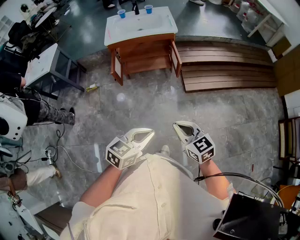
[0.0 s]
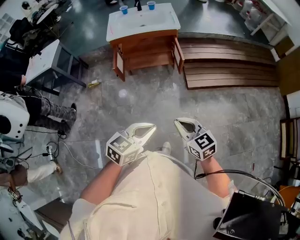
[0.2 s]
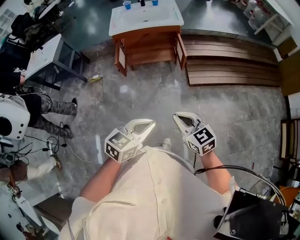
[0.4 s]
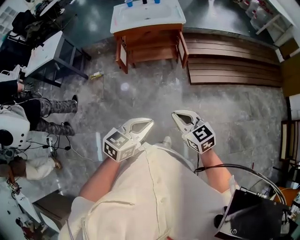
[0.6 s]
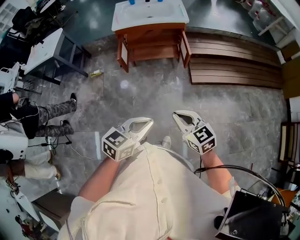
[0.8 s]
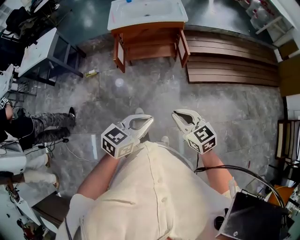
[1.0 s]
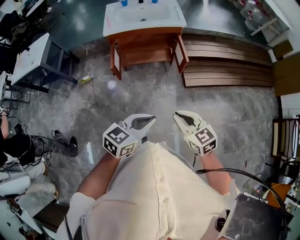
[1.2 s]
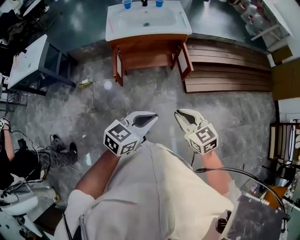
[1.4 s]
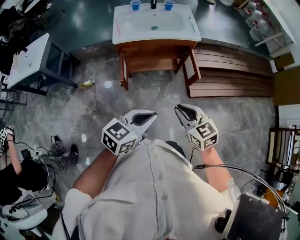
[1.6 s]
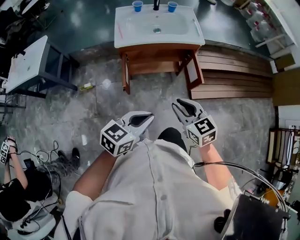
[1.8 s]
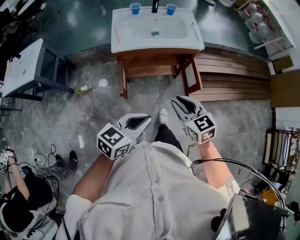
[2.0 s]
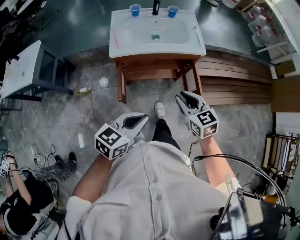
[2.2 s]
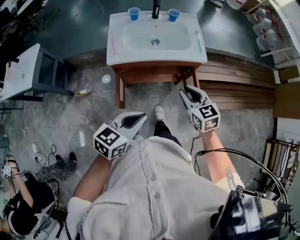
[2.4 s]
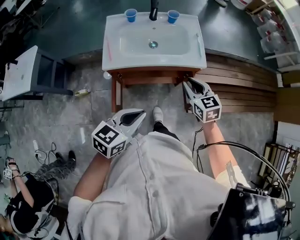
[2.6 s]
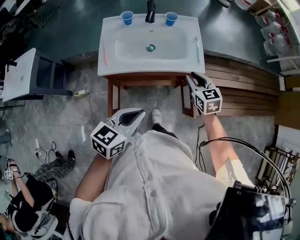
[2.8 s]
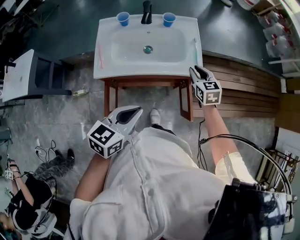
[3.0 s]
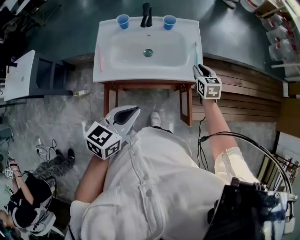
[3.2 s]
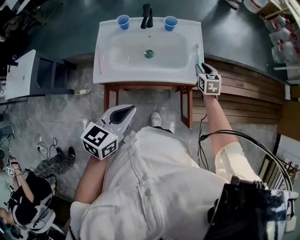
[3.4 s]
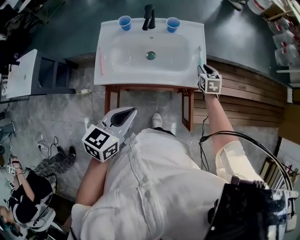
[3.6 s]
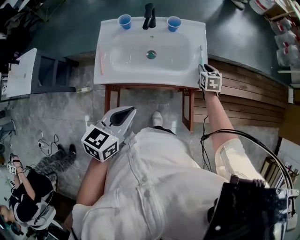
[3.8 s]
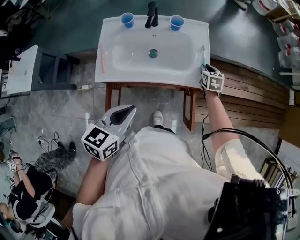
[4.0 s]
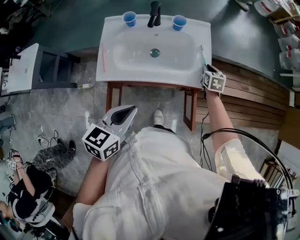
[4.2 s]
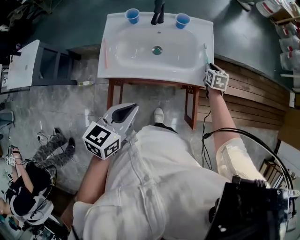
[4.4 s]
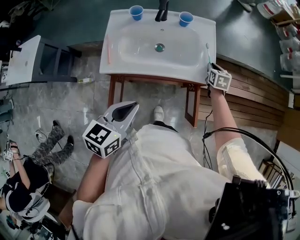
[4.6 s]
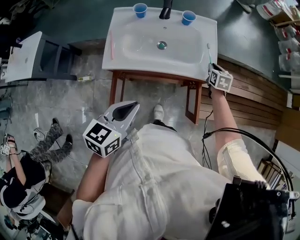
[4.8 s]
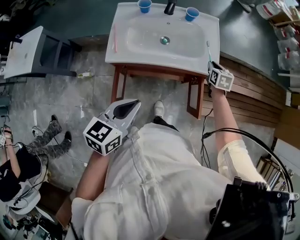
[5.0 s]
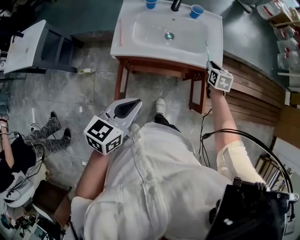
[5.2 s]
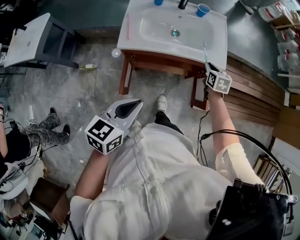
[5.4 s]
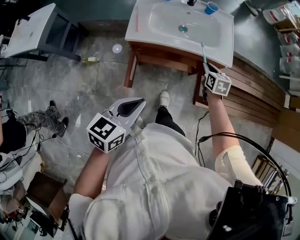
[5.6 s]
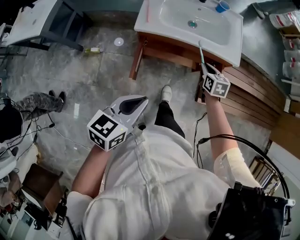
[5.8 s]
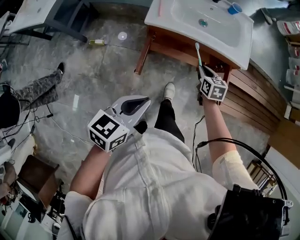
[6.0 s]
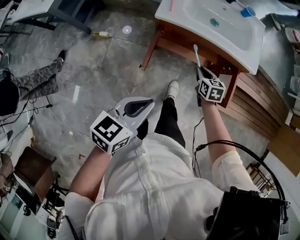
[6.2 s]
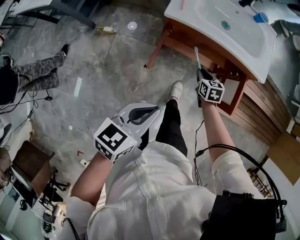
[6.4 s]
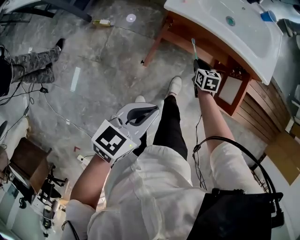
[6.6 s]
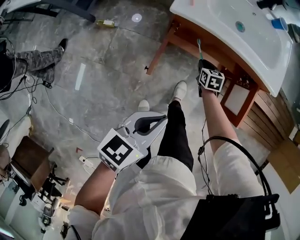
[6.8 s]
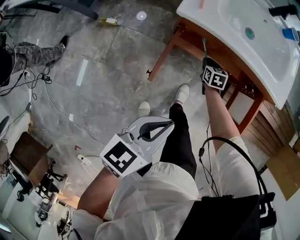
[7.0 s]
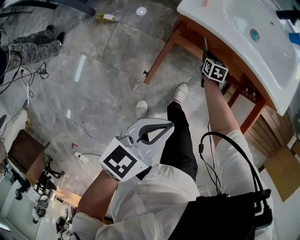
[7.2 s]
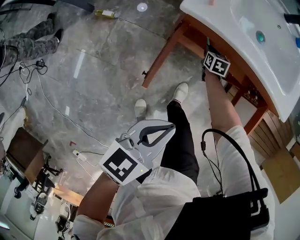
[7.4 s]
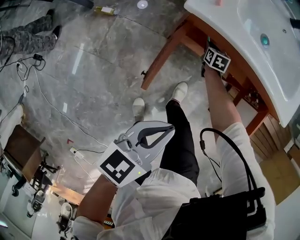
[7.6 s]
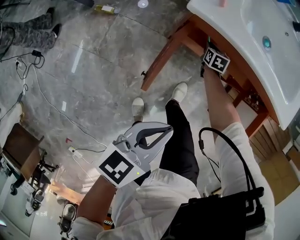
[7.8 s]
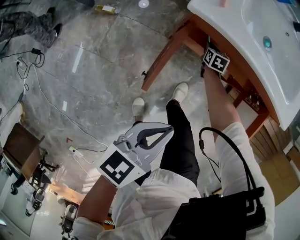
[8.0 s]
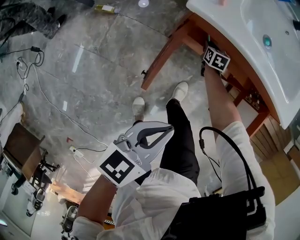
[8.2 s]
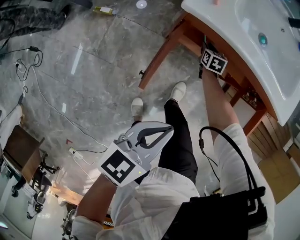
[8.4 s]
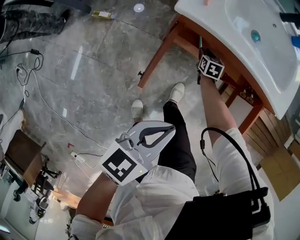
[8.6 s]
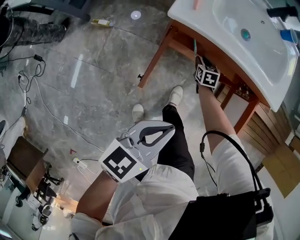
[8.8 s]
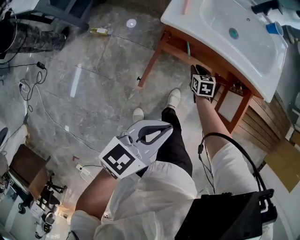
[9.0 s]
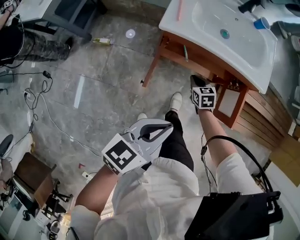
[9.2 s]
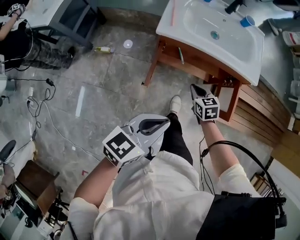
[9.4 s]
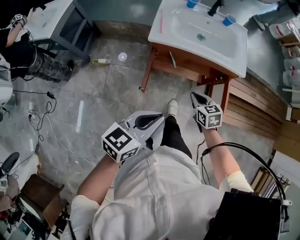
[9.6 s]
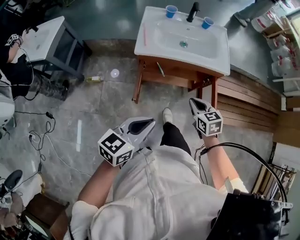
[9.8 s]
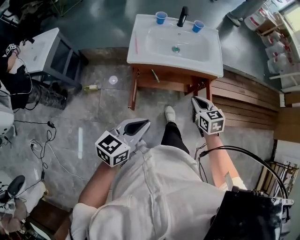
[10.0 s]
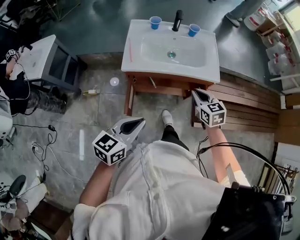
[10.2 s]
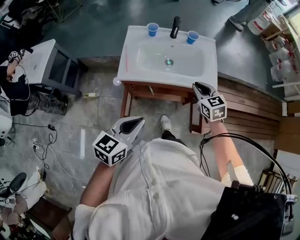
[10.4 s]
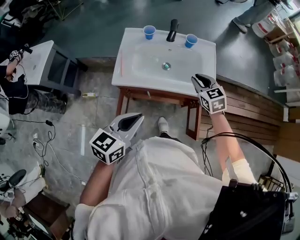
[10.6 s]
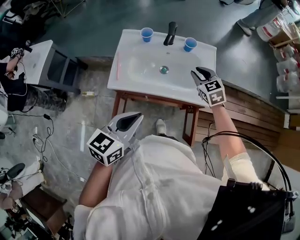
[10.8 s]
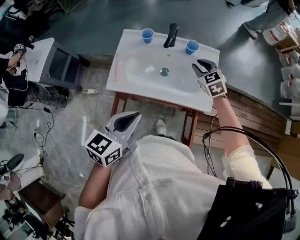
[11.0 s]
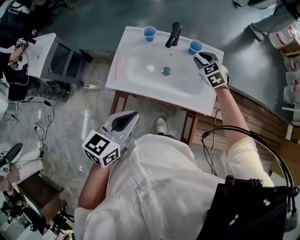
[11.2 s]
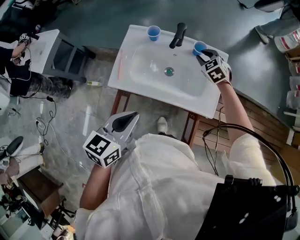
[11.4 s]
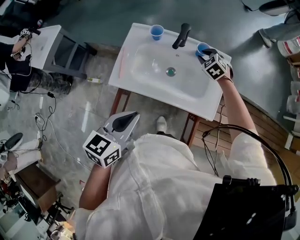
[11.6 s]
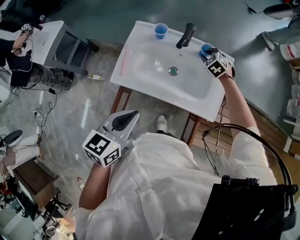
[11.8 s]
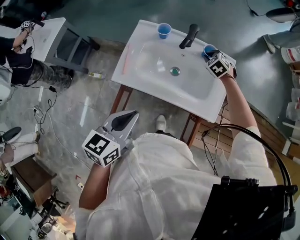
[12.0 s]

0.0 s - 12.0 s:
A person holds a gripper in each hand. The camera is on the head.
0.0 s - 1.6 s: The grippers both shift forward and to the left by some 30 cm.
1.6 s - 3.0 s: The left gripper is displaced forward by approximately 35 cm; the right gripper goes about 50 cm forward.
3.0 s - 4.4 s: The right gripper moves forward and downward, about 15 cm, while the left gripper goes some 5 cm forward.
4.4 s - 6.0 s: The right gripper goes some 35 cm backward and to the left; the left gripper heads backward, covering approximately 25 cm.
6.0 s - 7.6 s: The right gripper heads downward, forward and to the left, covering roughly 40 cm, while the left gripper moves downward and forward, roughly 15 cm.
7.6 s - 9.0 s: The left gripper moves upward, some 10 cm. Meanwhile the right gripper travels upward and backward by some 15 cm.
9.0 s - 10.4 s: The left gripper moves upward and forward, approximately 15 cm. Meanwhile the right gripper moves upward and to the right, approximately 40 cm.
10.4 s - 12.0 s: The right gripper heads forward, covering some 30 cm, and turns by some 50 degrees. The left gripper goes about 15 cm forward, and changes its angle by roughly 20 degrees.

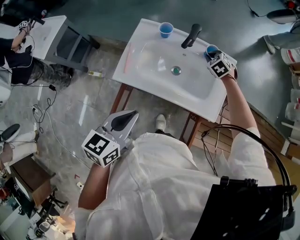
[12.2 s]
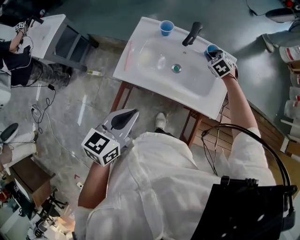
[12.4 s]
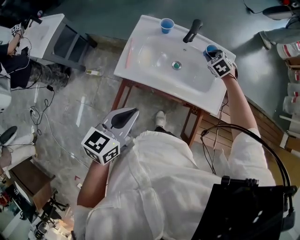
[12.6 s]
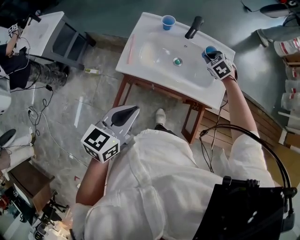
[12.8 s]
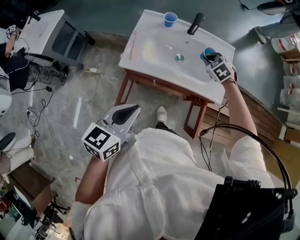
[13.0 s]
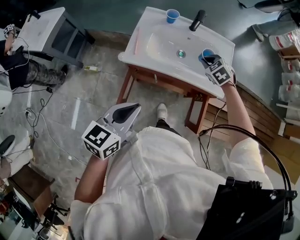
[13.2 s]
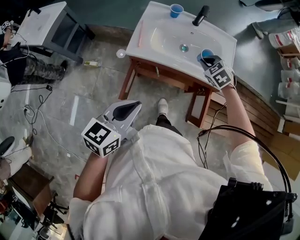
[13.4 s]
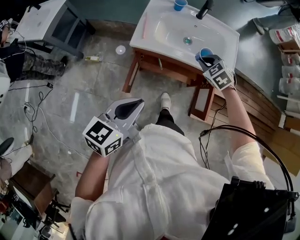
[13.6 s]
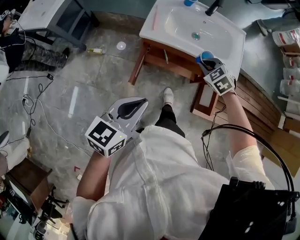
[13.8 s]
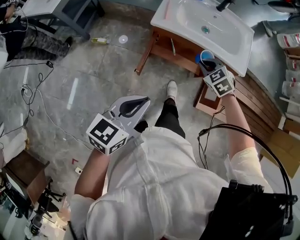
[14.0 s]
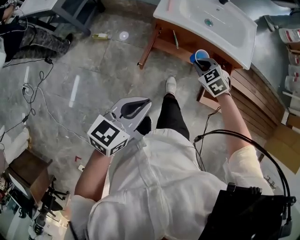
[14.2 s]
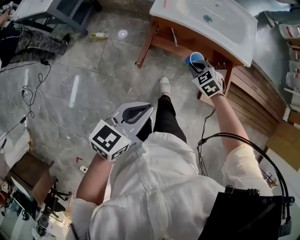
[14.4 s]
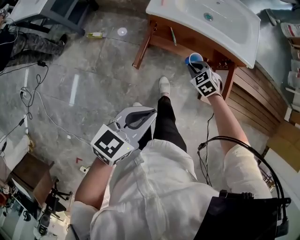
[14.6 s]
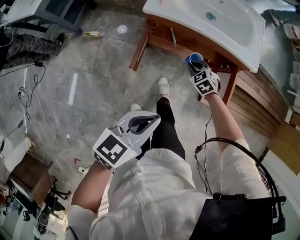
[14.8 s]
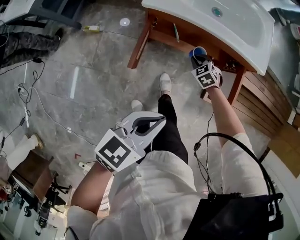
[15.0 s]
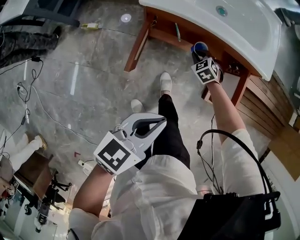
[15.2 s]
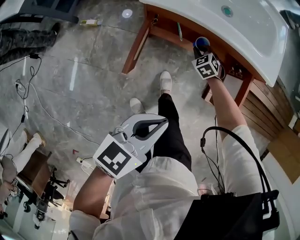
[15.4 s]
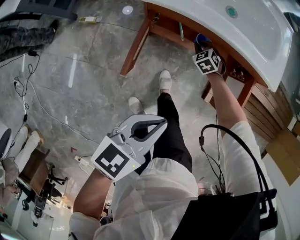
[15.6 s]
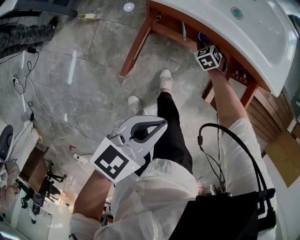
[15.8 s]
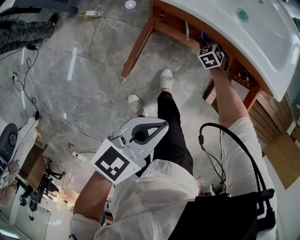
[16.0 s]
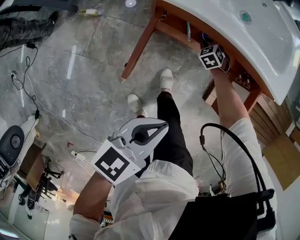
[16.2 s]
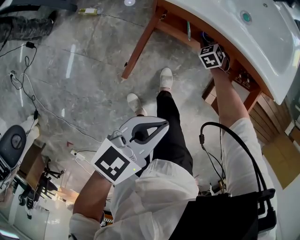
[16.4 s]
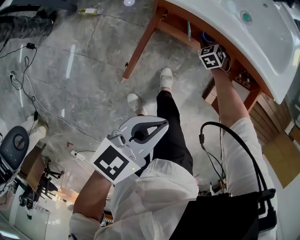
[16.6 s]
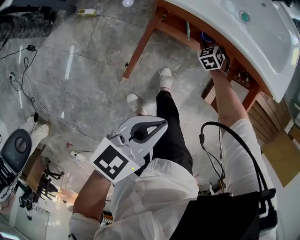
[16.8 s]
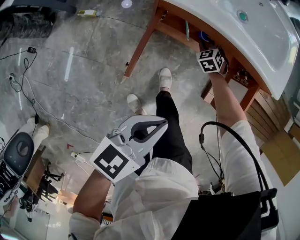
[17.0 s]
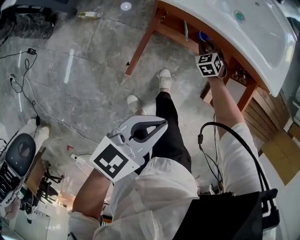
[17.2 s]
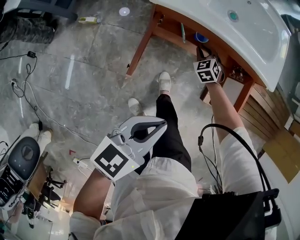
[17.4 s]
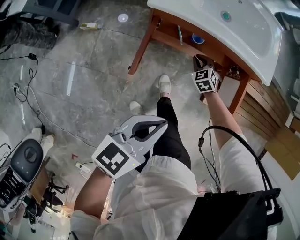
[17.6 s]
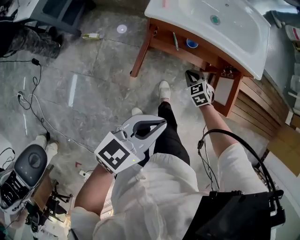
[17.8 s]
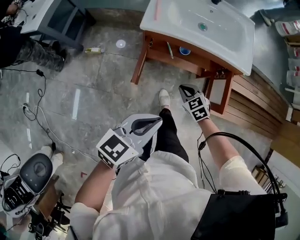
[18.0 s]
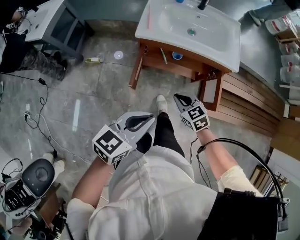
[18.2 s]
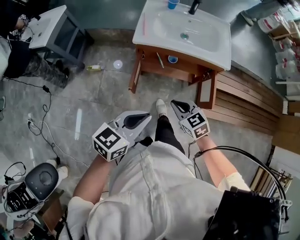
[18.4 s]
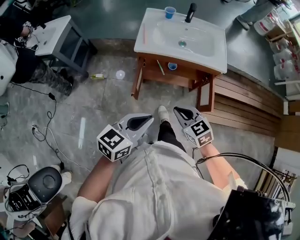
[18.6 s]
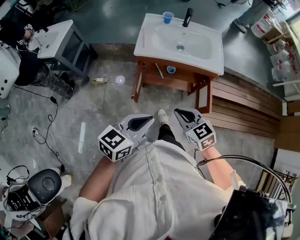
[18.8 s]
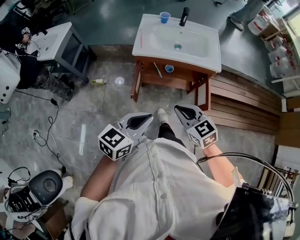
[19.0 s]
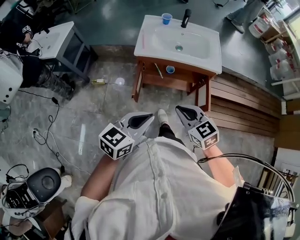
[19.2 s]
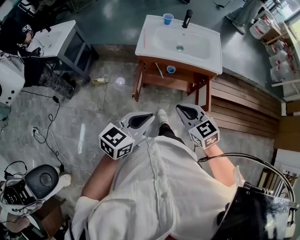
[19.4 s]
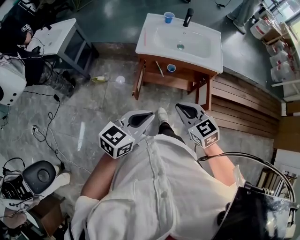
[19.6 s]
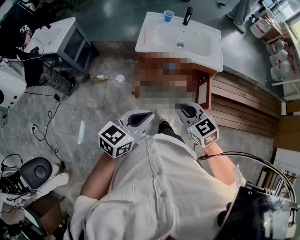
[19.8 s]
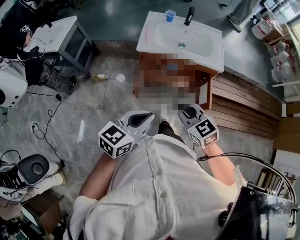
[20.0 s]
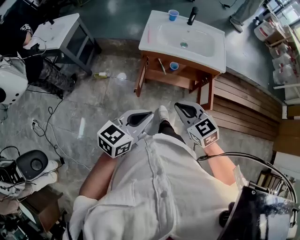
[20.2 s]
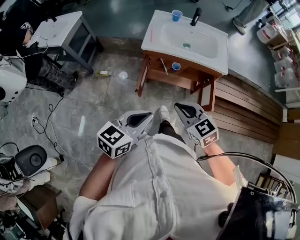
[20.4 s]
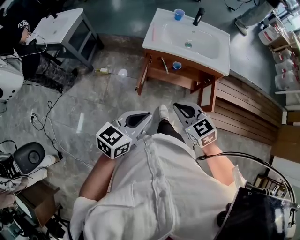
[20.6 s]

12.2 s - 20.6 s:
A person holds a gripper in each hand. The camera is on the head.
12.2 s - 13.6 s: The left gripper goes some 20 cm backward and to the left, while the right gripper moves backward, roughly 30 cm.
13.6 s - 15.0 s: The right gripper is displaced downward by roughly 25 cm. Meanwhile the left gripper heads downward and backward, covering about 15 cm.
15.0 s - 16.4 s: The left gripper goes some 10 cm downward and forward; the right gripper shifts some 20 cm forward and downward.
16.4 s - 17.8 s: The right gripper heads backward and upward, covering about 20 cm. The left gripper travels upward and backward by roughly 10 cm.
17.8 s - 19.2 s: The left gripper heads upward and backward, covering about 15 cm. Meanwhile the right gripper is displaced upward and backward by some 40 cm, and rotates about 30 degrees.
19.2 s - 20.6 s: The grippers make only small movements.

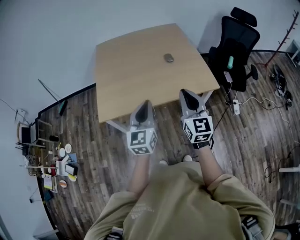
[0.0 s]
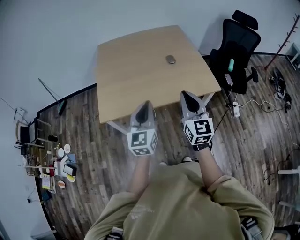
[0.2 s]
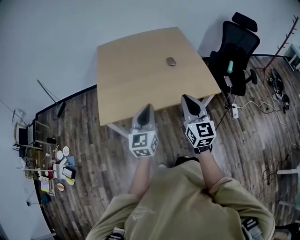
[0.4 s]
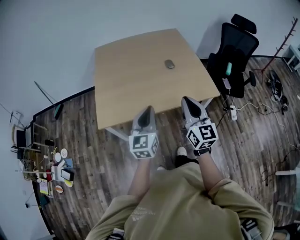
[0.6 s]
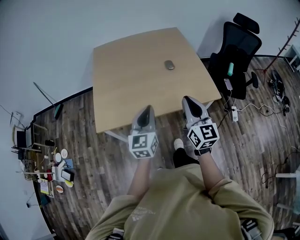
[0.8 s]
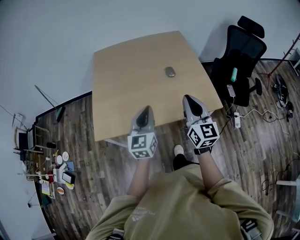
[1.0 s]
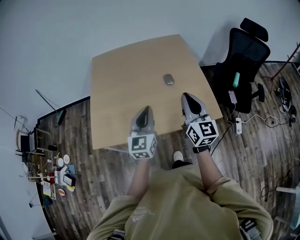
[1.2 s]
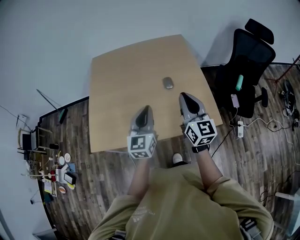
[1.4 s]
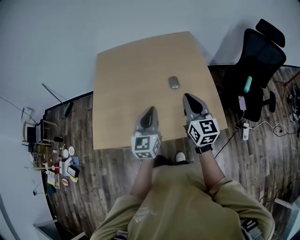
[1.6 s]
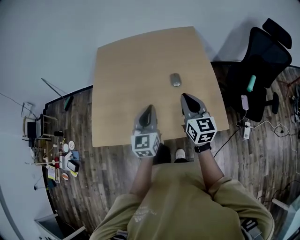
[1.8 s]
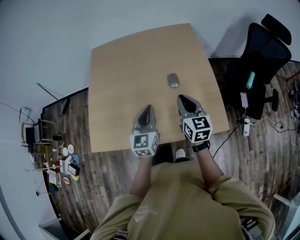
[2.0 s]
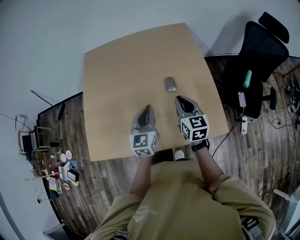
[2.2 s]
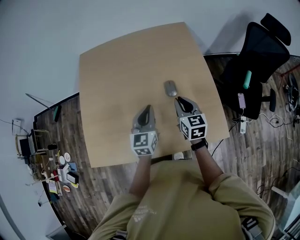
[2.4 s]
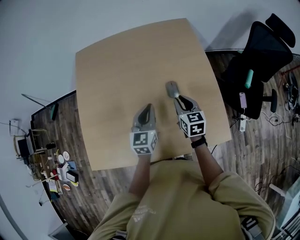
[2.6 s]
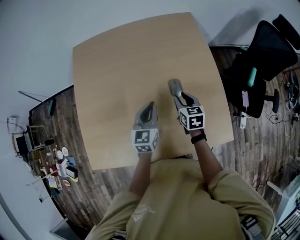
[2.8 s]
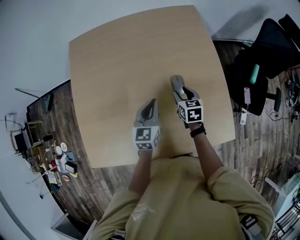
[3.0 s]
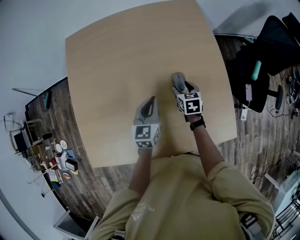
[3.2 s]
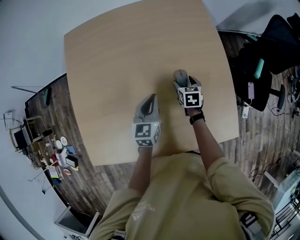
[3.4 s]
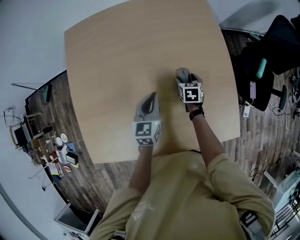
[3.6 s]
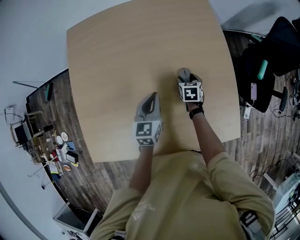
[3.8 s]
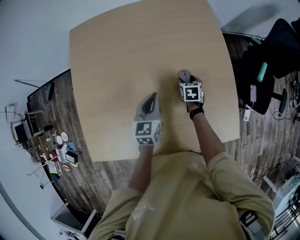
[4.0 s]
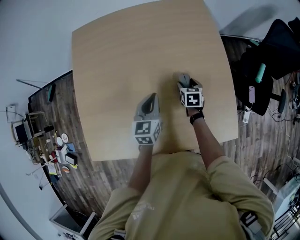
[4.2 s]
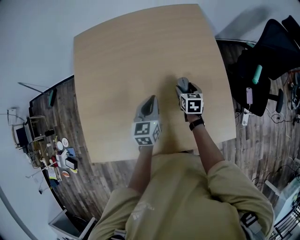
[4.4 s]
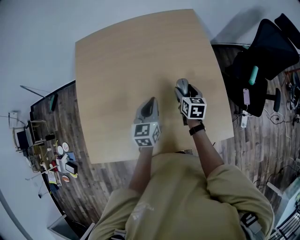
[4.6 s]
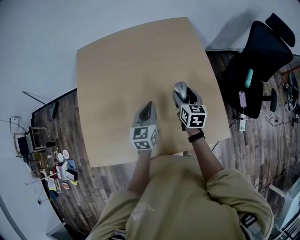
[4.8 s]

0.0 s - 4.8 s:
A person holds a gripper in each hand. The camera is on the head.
0.0 s - 1.6 s: Both grippers move forward, approximately 30 cm.
1.6 s - 3.2 s: The left gripper heads forward and downward, covering approximately 35 cm, and rotates roughly 20 degrees. Meanwhile the right gripper shifts approximately 40 cm downward and forward, angles its fingers downward, by about 50 degrees, and opens up.
3.2 s - 4.8 s: The left gripper is displaced backward and upward by some 10 cm, while the right gripper goes approximately 15 cm upward and backward, and turns by roughly 20 degrees.
